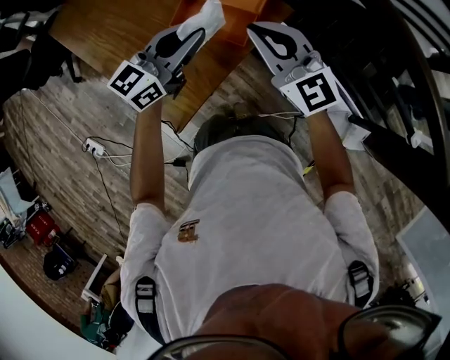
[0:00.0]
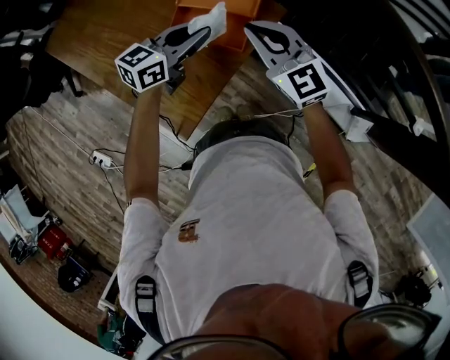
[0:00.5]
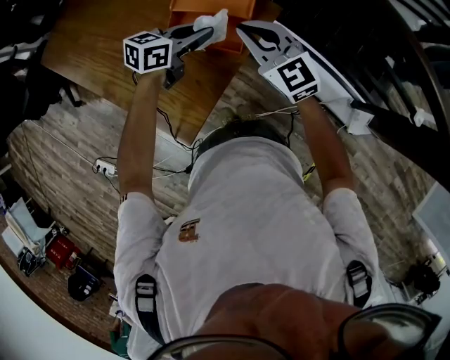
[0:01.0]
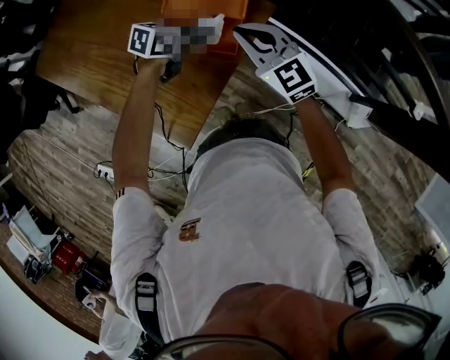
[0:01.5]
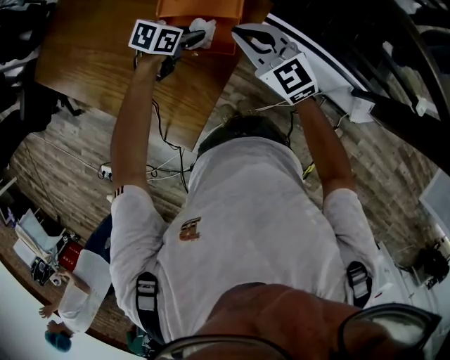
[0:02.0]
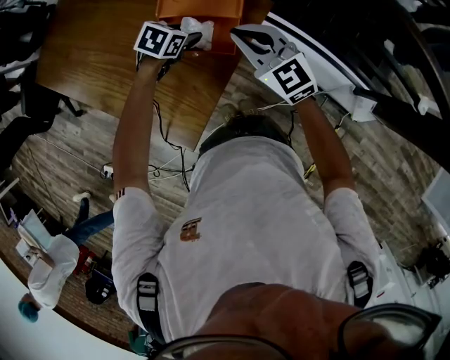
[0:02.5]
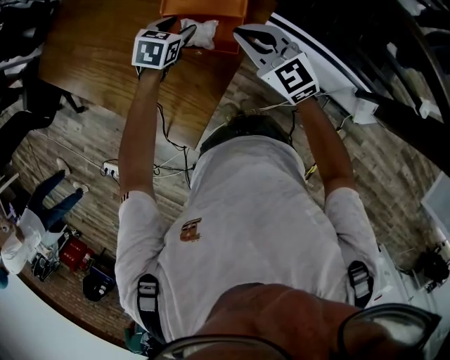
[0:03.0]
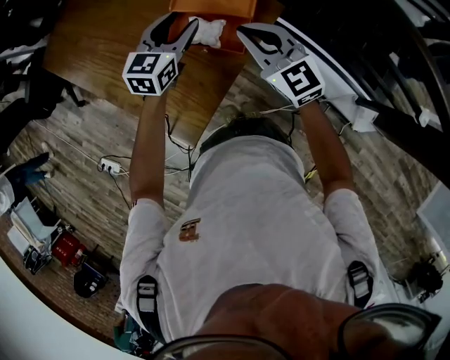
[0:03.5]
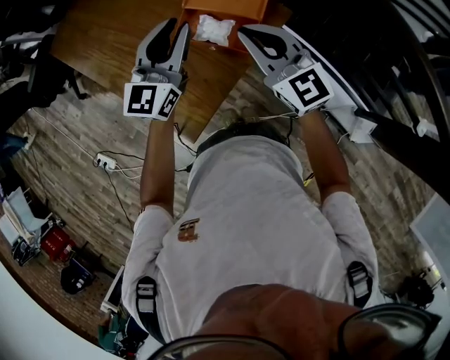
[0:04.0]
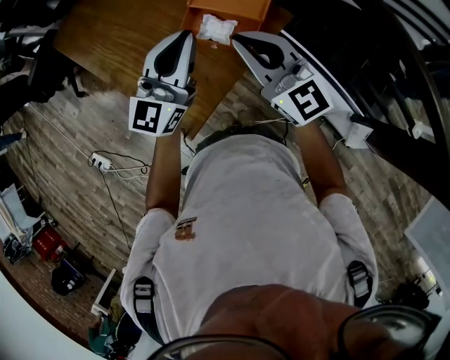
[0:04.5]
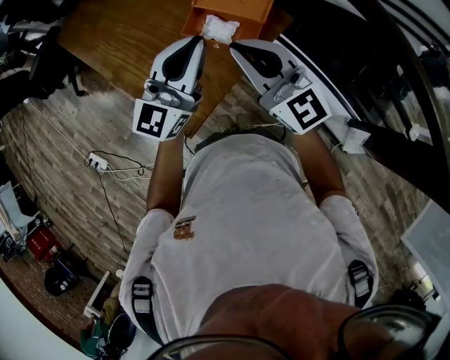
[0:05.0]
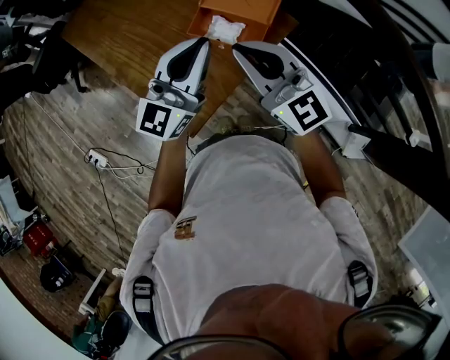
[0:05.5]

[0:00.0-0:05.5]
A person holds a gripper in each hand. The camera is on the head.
0:00.0 to 0:02.0: The left gripper travels downward and forward by approximately 20 cm, and points its fingers approximately 40 degrees further downward. Meanwhile the right gripper goes approximately 10 cm downward and forward.
0:02.0 to 0:03.5: The left gripper moves upward, some 15 cm, rotates some 50 degrees, and opens.
0:03.5 to 0:05.5: The right gripper heads upward, backward and to the left, covering roughly 20 cm, and swivels about 20 degrees, while the left gripper is displaced backward and upward by approximately 25 cm, angles its fingers upward, by some 40 degrees, and closes its fingers.

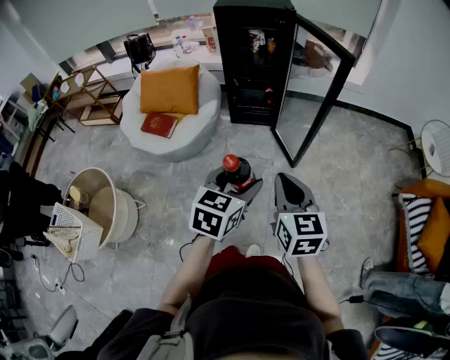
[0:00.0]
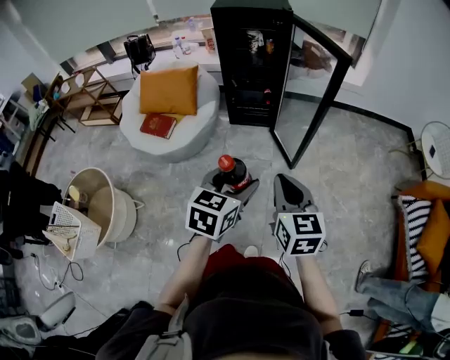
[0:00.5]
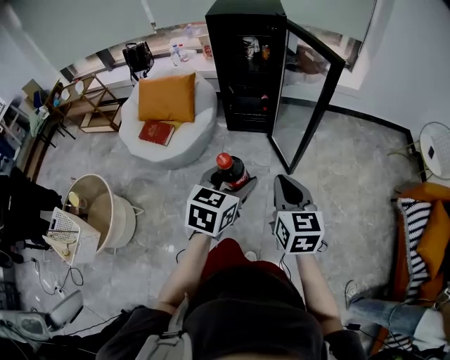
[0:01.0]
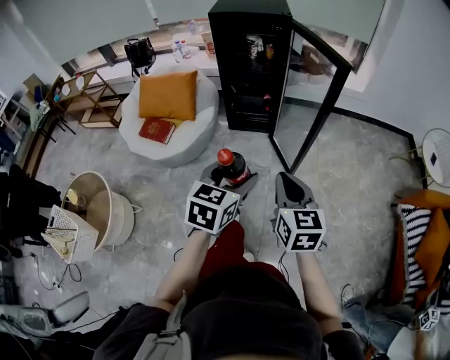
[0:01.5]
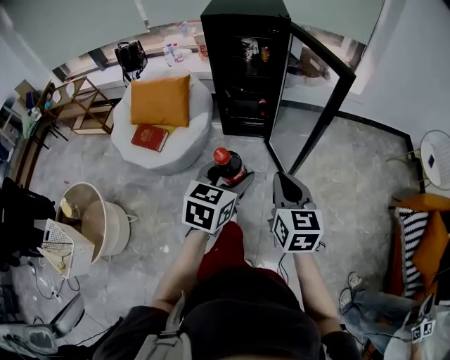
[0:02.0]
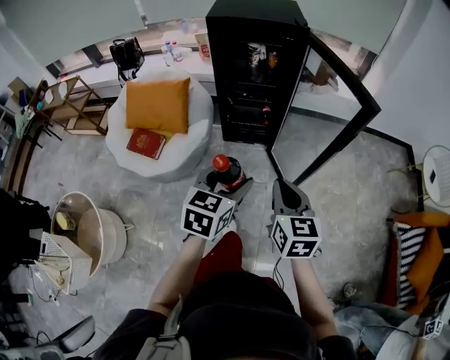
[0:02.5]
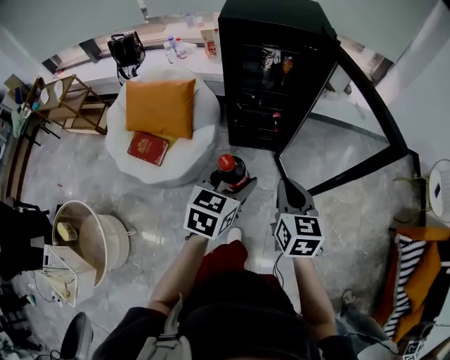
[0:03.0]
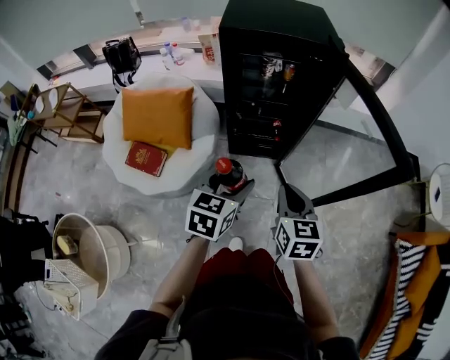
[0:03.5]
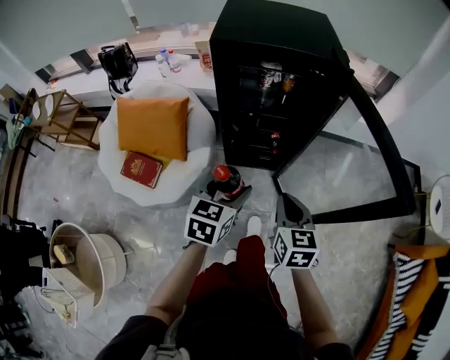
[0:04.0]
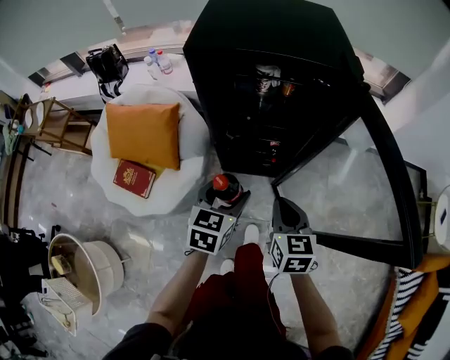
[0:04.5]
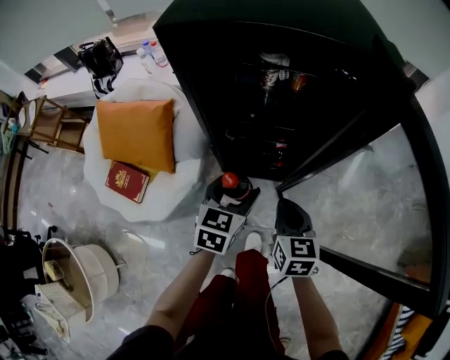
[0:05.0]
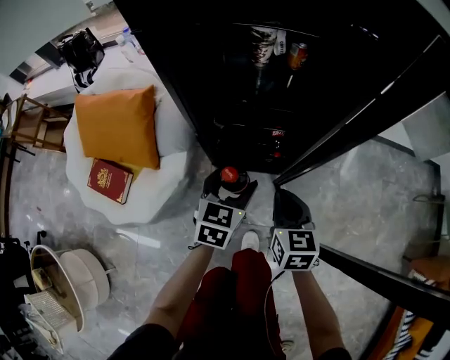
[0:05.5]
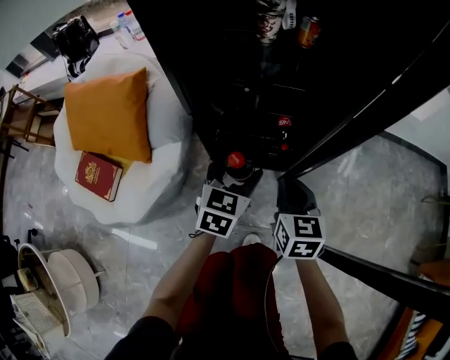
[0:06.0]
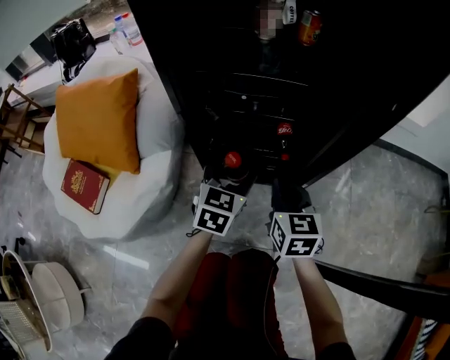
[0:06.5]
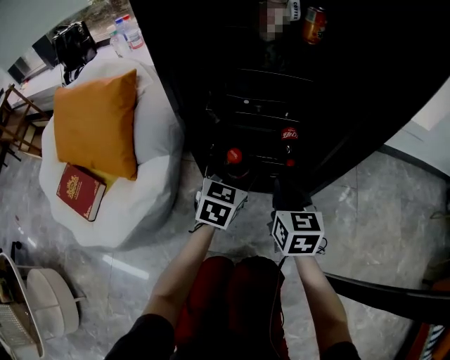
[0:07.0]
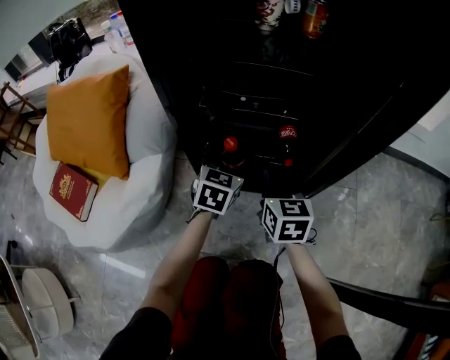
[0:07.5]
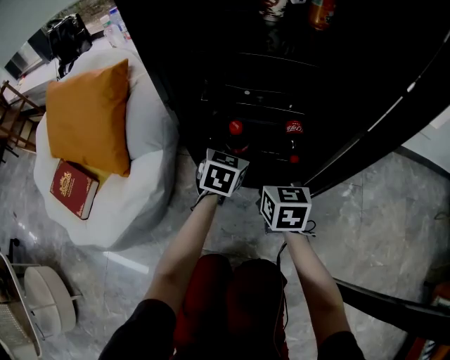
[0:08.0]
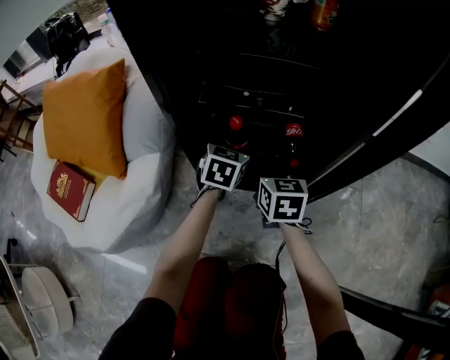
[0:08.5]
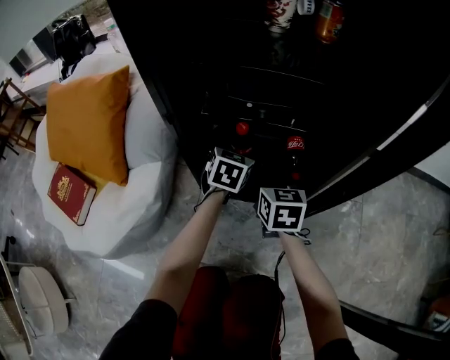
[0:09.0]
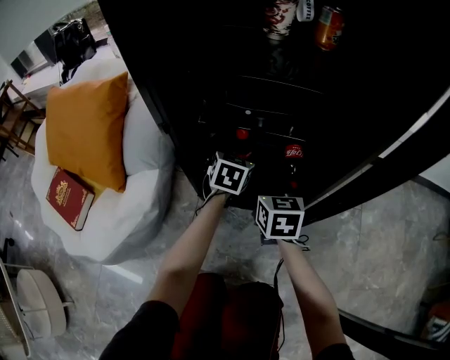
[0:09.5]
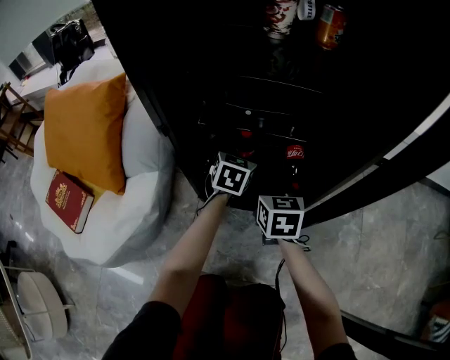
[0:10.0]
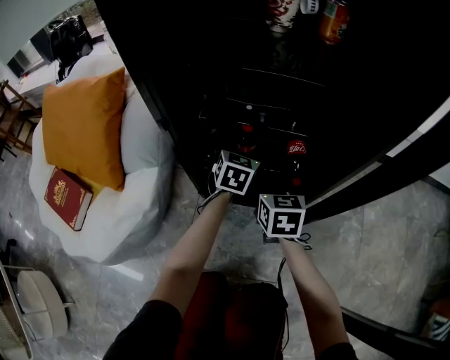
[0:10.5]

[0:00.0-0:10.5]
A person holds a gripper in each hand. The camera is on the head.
0:00.0 to 0:02.0: Both grippers move forward, approximately 10 cm.
0:02.0 to 0:04.0: The left gripper is displaced forward and to the left by roughly 35 cm, while the right gripper is displaced forward by roughly 30 cm.
0:04.0 to 0:06.5: Both grippers travel together downward and forward, approximately 50 cm.
0:06.5 to 0:08.5: The left gripper heads forward and downward, covering about 20 cm; the right gripper travels downward and forward by roughly 15 cm.
0:08.5 to 0:10.5: The left gripper goes roughly 5 cm forward.

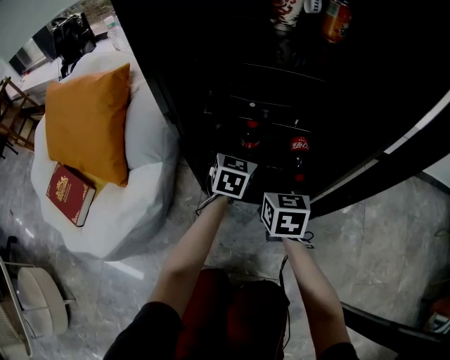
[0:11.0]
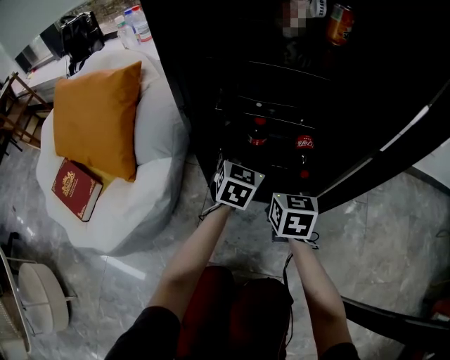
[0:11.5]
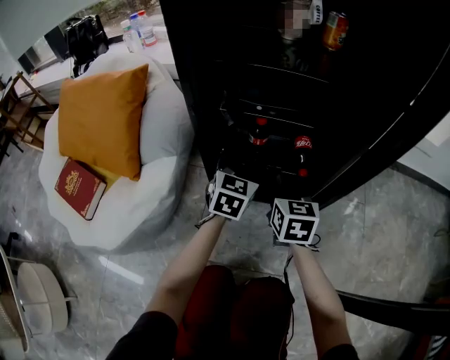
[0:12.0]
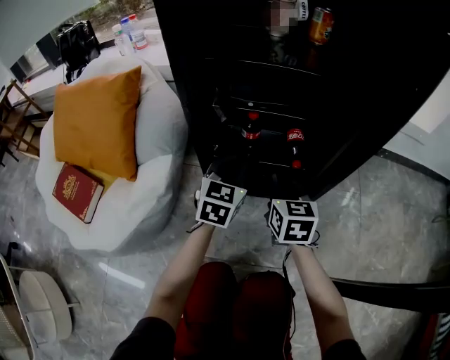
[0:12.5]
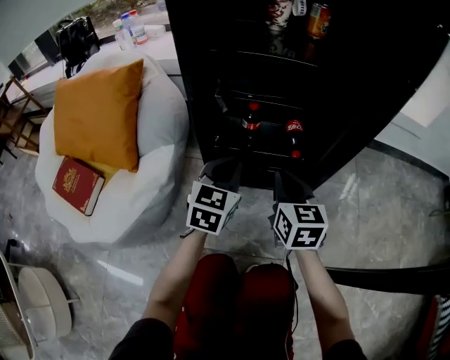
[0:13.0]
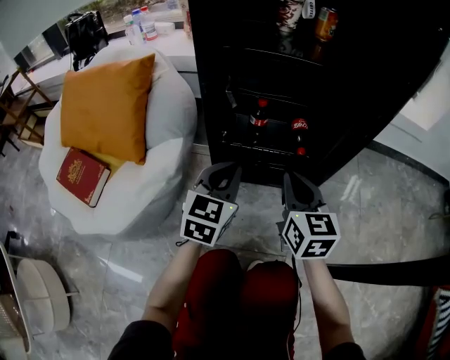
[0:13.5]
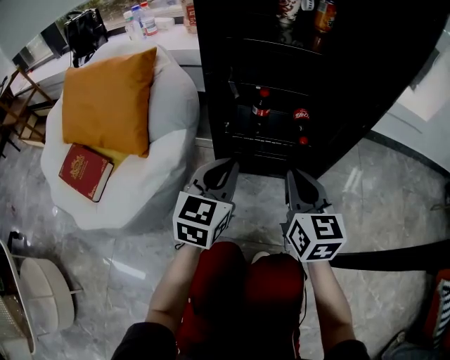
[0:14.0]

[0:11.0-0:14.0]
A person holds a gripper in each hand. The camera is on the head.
0:11.0 to 0:12.5: The right gripper goes about 5 cm backward; the left gripper moves backward and upward, some 15 cm, and closes its fingers.
0:12.5 to 0:14.0: The two grippers go roughly 15 cm backward and upward.

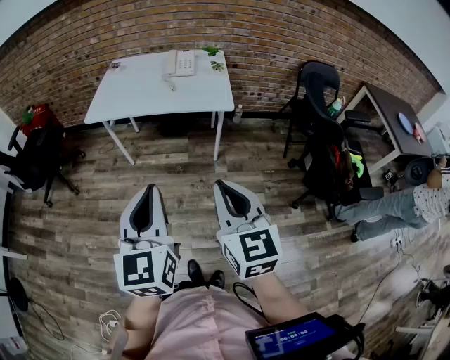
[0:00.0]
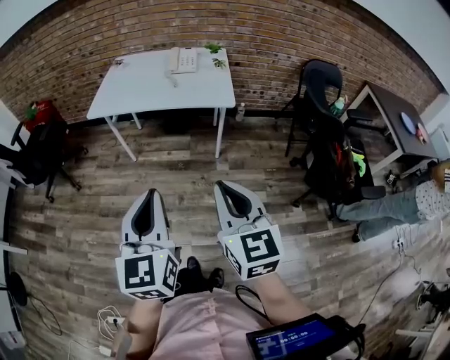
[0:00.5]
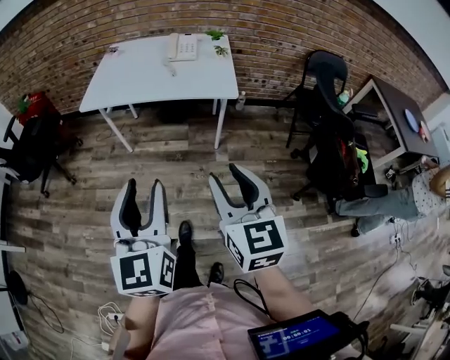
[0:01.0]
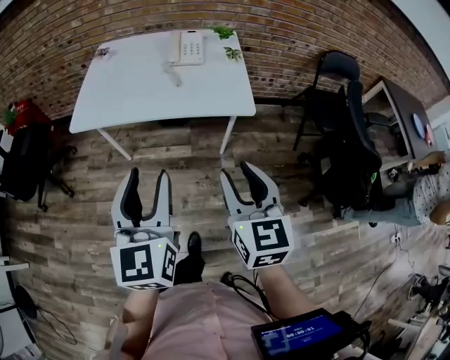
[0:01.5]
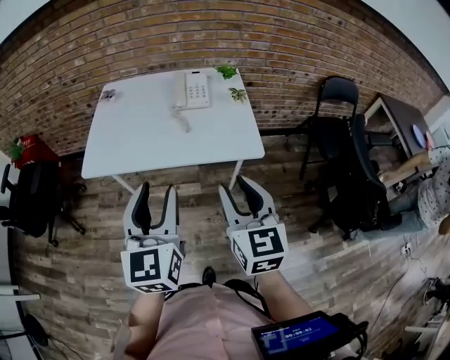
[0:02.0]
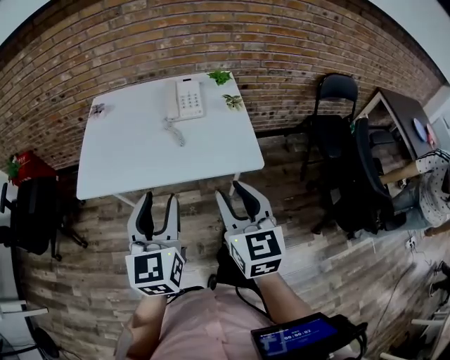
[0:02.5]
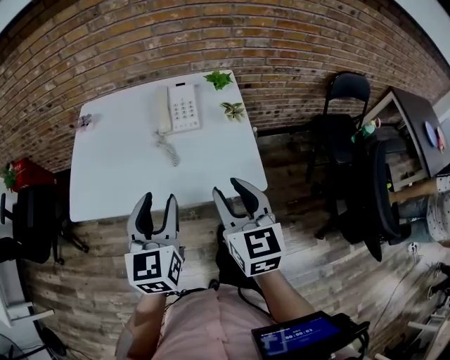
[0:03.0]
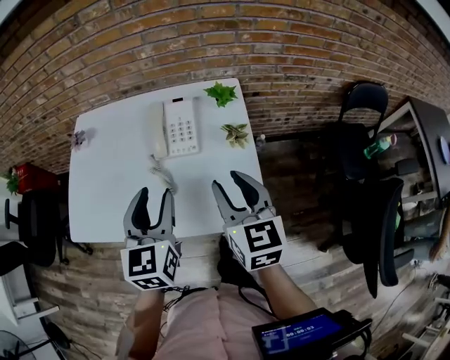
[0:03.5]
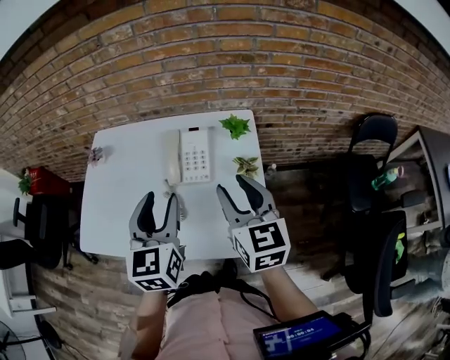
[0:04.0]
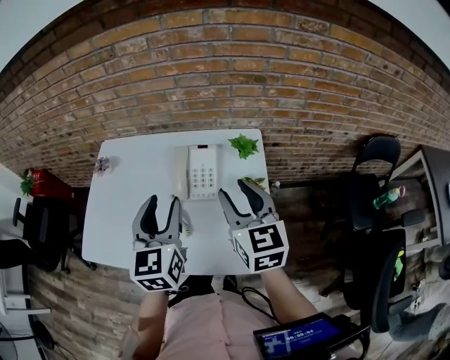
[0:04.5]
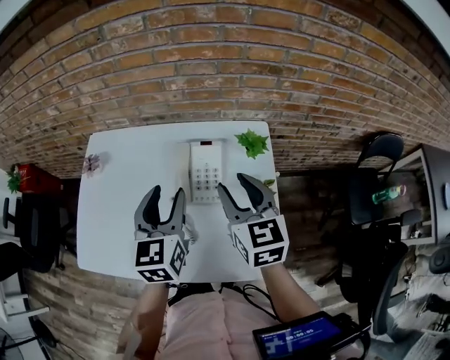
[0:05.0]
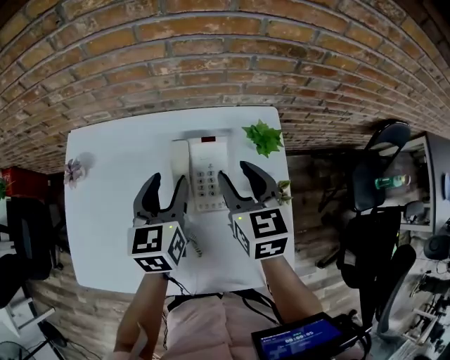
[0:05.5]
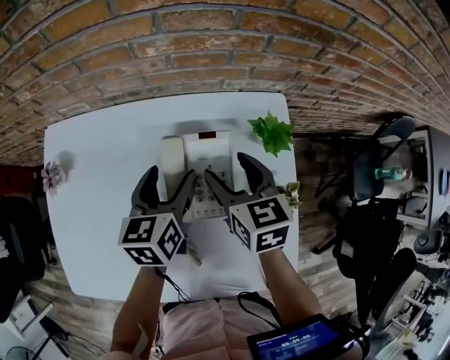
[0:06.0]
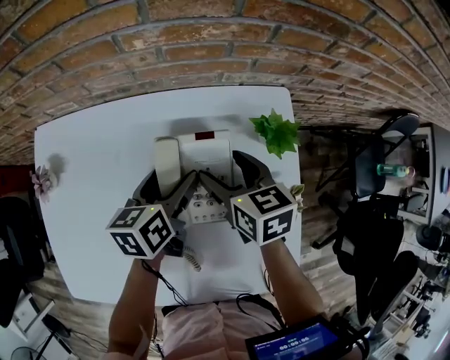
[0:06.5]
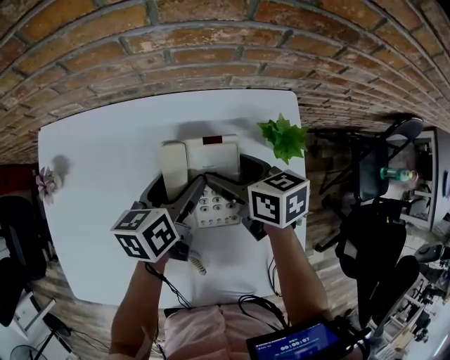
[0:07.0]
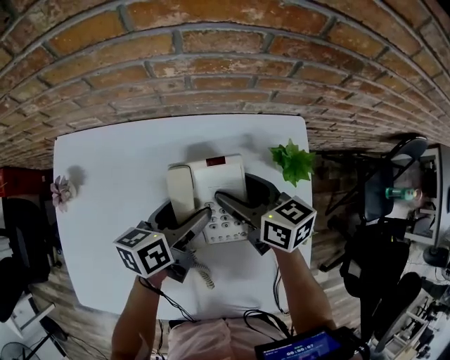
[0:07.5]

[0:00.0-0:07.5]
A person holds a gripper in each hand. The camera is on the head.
0:00.0 to 0:02.0: The two grippers go roughly 30 cm forward. The left gripper opens; the right gripper opens.
0:02.0 to 0:04.0: Both grippers move forward, about 35 cm.
0:04.0 to 0:05.5: The grippers both shift forward and downward by some 20 cm.
0:05.5 to 0:07.5: The left gripper moves downward, approximately 10 cm, changes its angle by some 40 degrees, and opens its fingers. The right gripper moves downward and forward, roughly 10 cm, and changes its angle by roughly 30 degrees.
